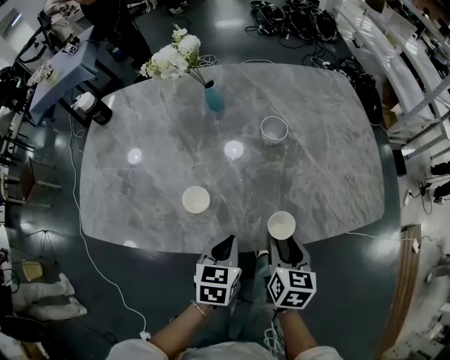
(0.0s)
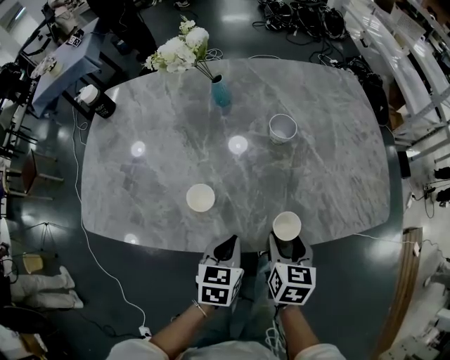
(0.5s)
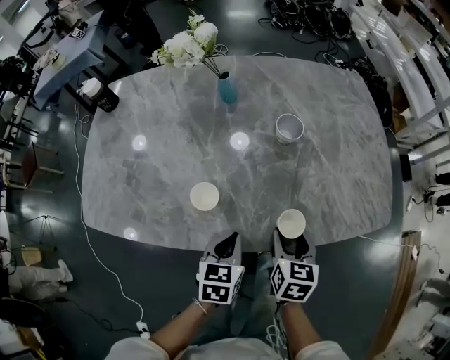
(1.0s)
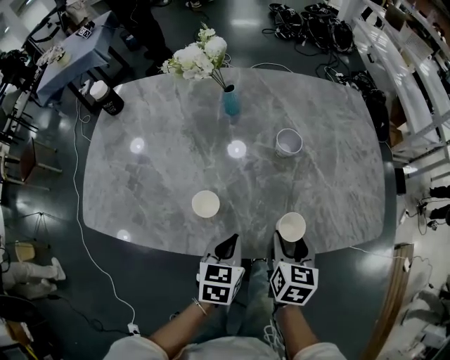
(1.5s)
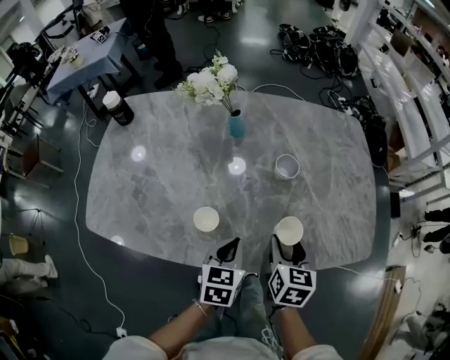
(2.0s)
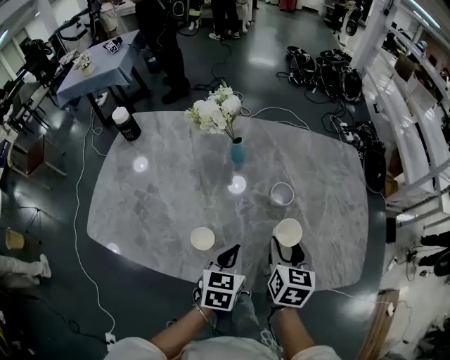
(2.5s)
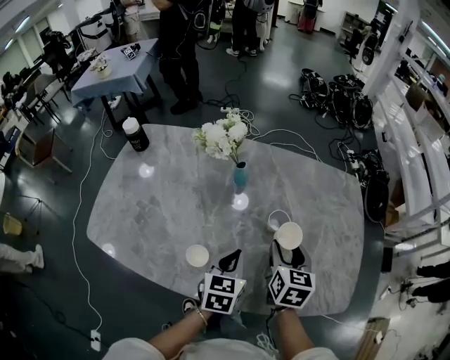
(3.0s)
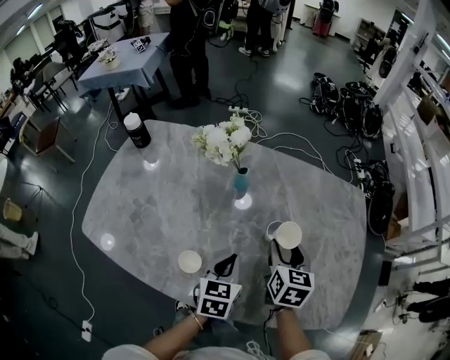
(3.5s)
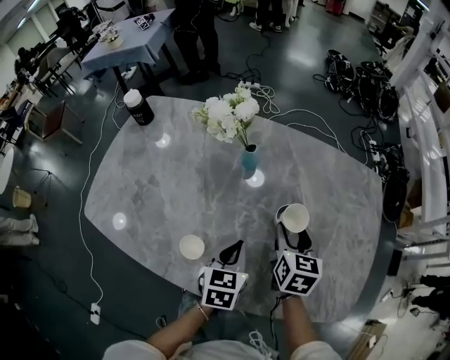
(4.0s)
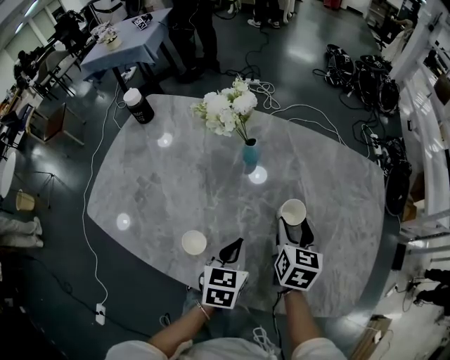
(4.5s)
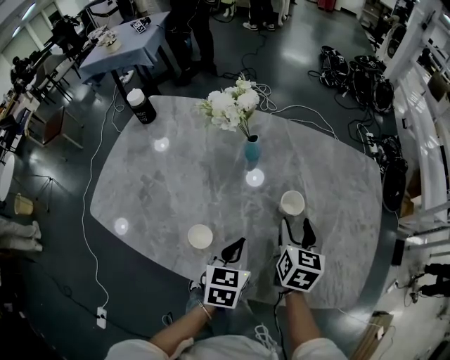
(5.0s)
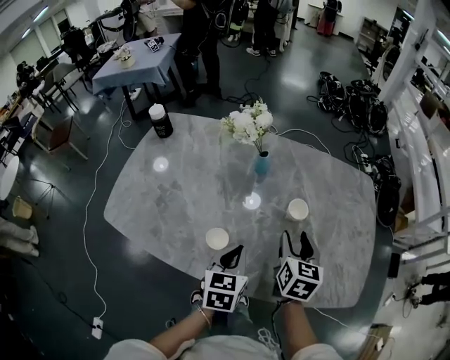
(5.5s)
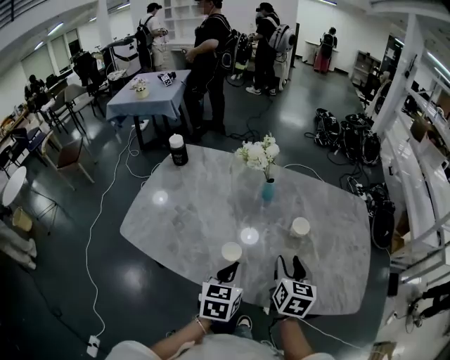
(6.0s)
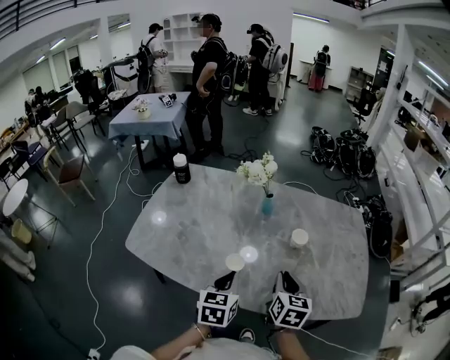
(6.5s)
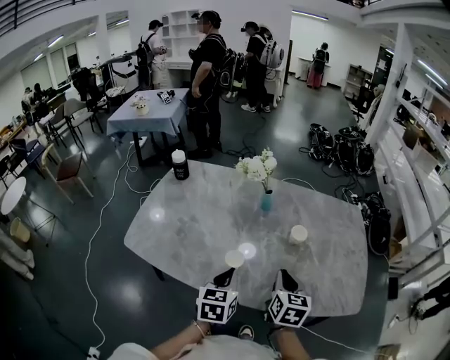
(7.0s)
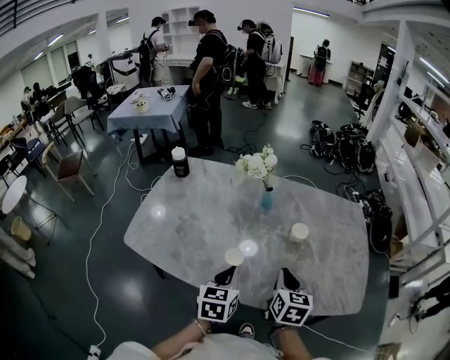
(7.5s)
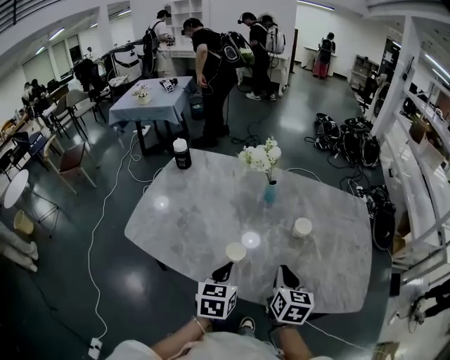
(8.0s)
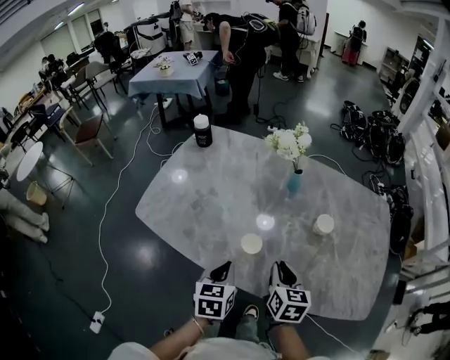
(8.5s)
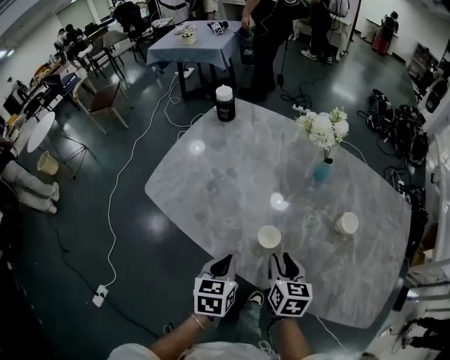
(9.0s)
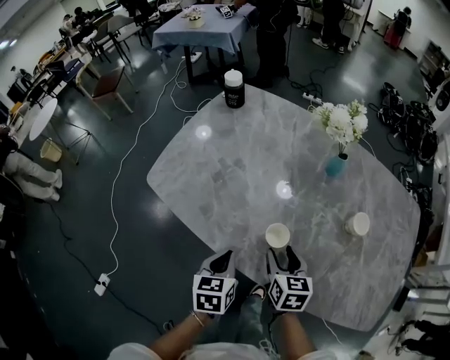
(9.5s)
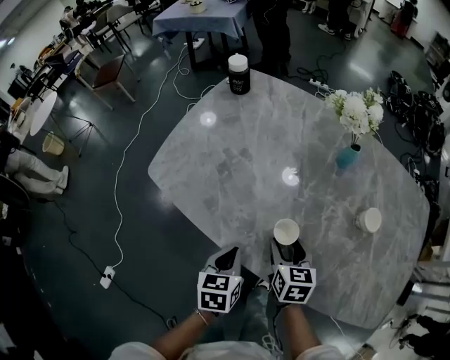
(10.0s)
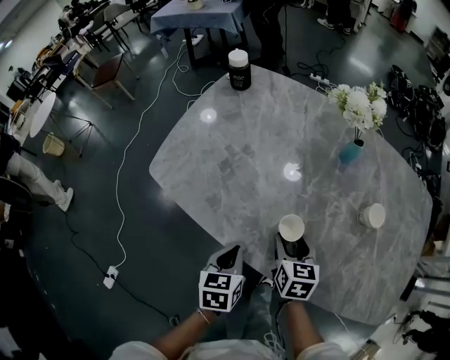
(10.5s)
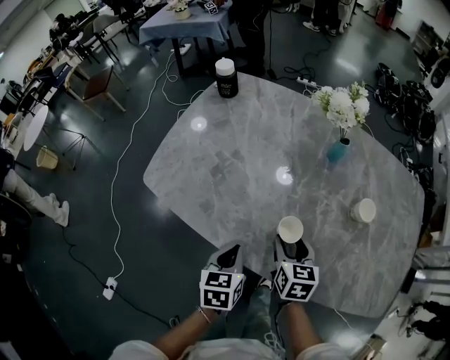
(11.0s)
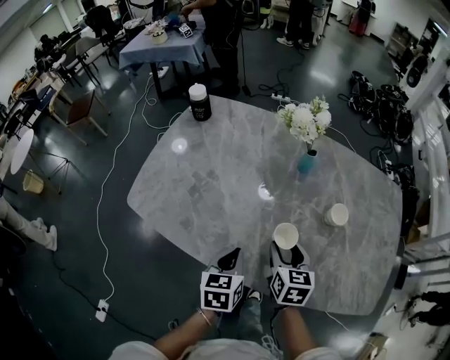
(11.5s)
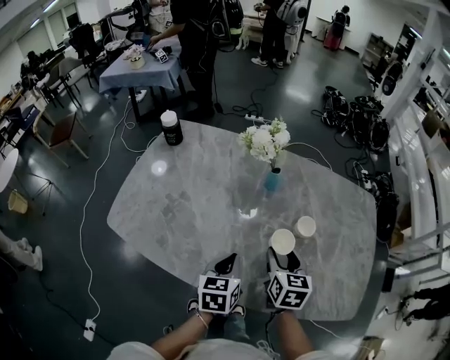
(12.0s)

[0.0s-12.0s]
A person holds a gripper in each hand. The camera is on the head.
0.0s to 2.0s: The right gripper is displaced forward and upward by roughly 10 cm. The left gripper is displaced forward by approximately 5 cm.
2.0s to 4.0s: The left gripper moves forward, approximately 10 cm, while the right gripper moves forward, roughly 20 cm.
4.0s to 6.0s: The left gripper moves backward, to the left and upward, about 20 cm. The right gripper shifts about 20 cm backward and upward.
6.0s to 8.0s: The right gripper closes up.
8.0s to 10.0s: The right gripper travels downward, to the left and forward by about 20 cm, rotates approximately 30 degrees, and opens its fingers. Meanwhile the left gripper shifts approximately 15 cm downward and to the left, and rotates about 20 degrees.
10.0s to 12.0s: The right gripper travels to the right and upward by roughly 20 cm; the left gripper heads to the right, upward and forward, covering approximately 20 cm.

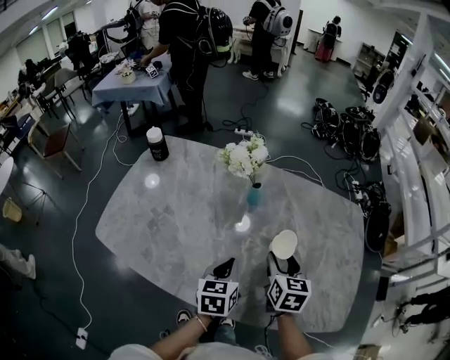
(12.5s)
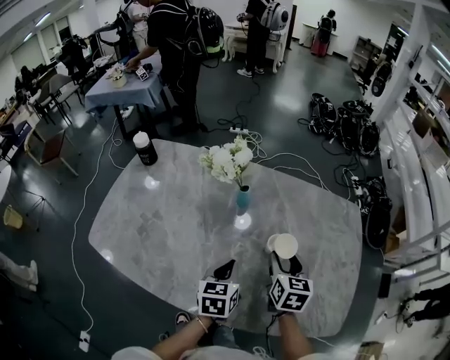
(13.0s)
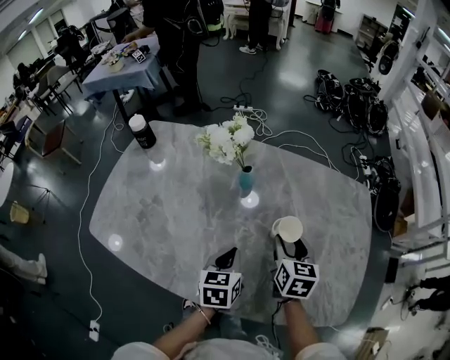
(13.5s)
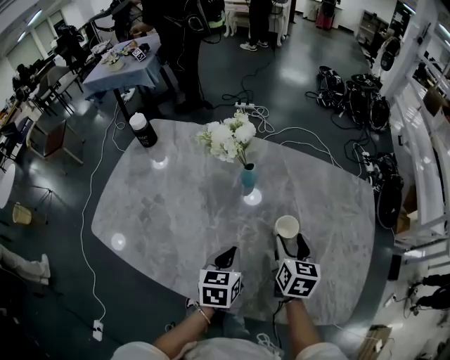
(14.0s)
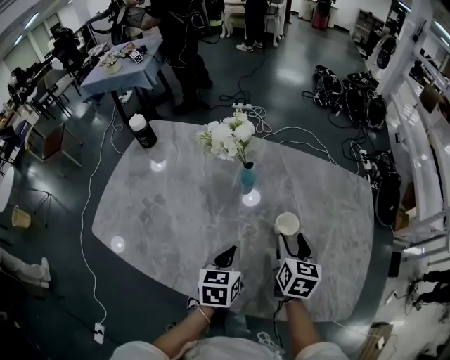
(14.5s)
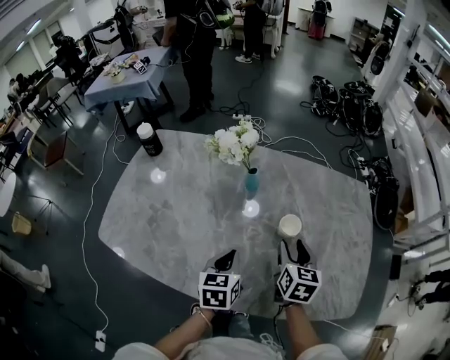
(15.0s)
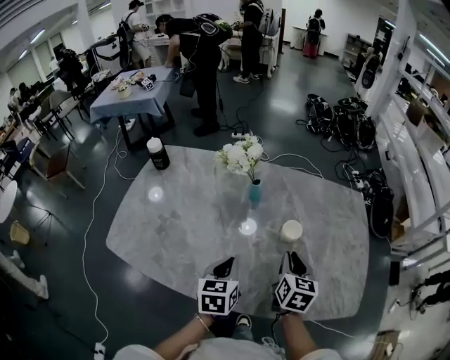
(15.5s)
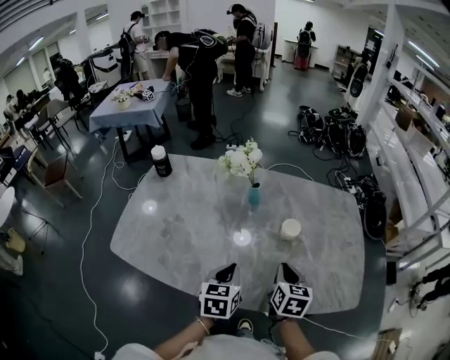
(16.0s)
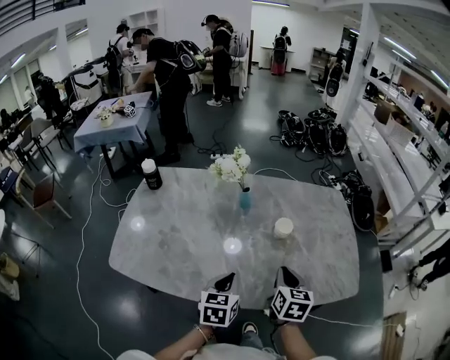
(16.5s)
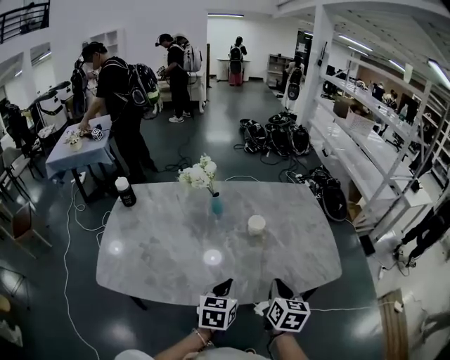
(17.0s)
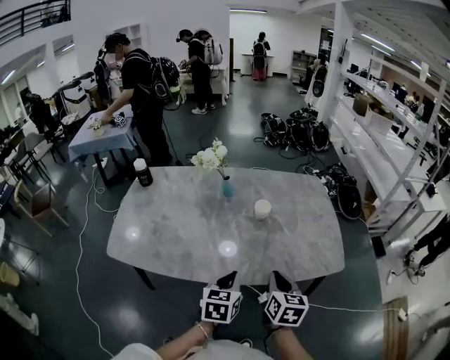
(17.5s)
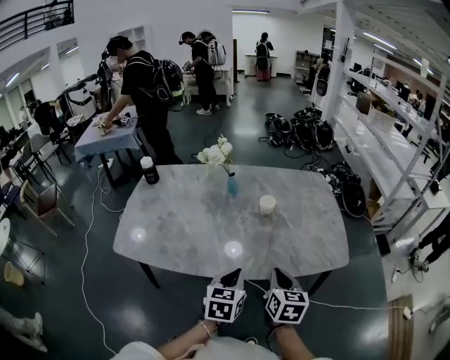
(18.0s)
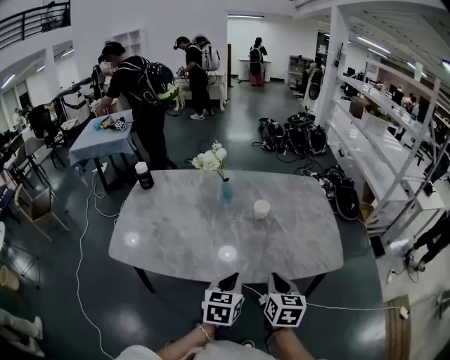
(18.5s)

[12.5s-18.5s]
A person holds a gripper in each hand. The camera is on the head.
12.5s to 14.5s: The right gripper moves some 5 cm.
14.5s to 16.5s: The left gripper moves backward and upward, approximately 15 cm. The right gripper travels backward by about 15 cm, and closes its fingers.
16.5s to 18.5s: The right gripper goes about 15 cm backward. Meanwhile the left gripper is displaced backward and to the right by roughly 15 cm.

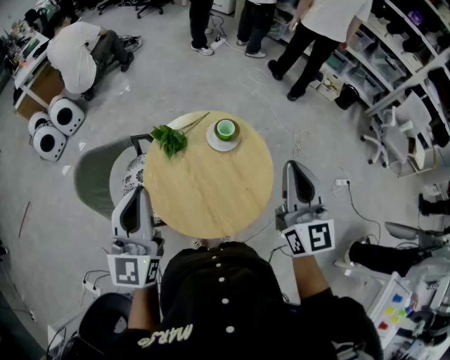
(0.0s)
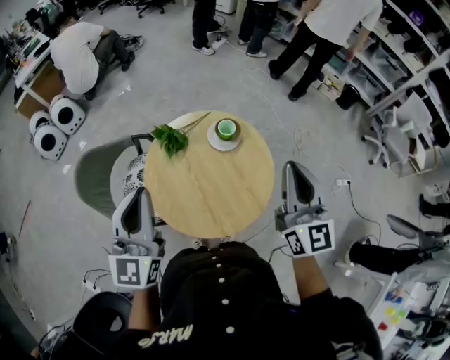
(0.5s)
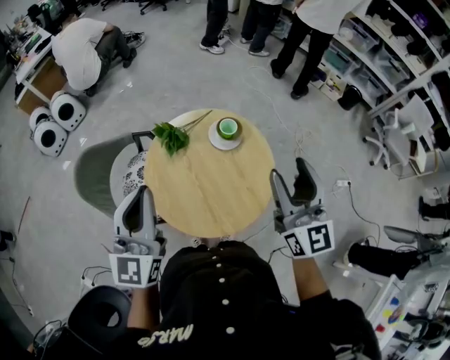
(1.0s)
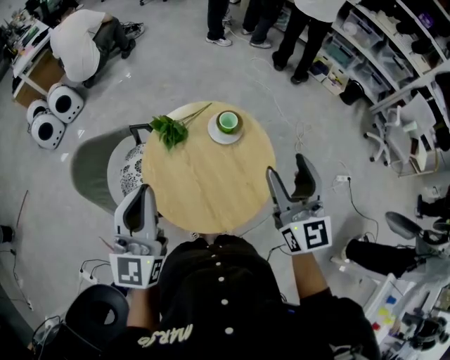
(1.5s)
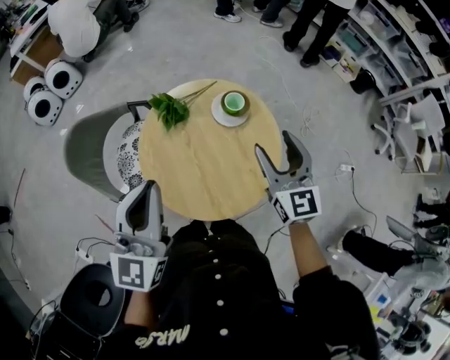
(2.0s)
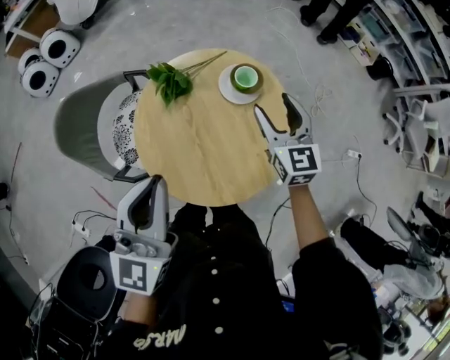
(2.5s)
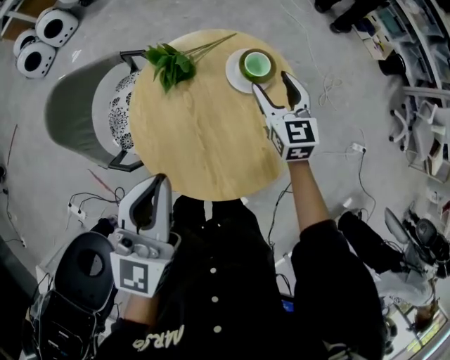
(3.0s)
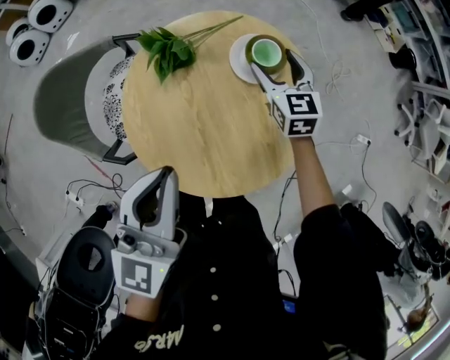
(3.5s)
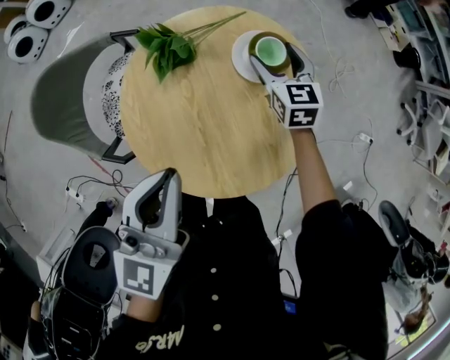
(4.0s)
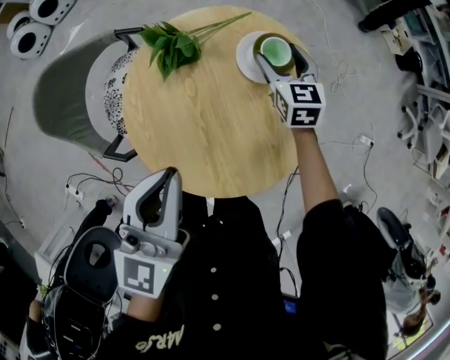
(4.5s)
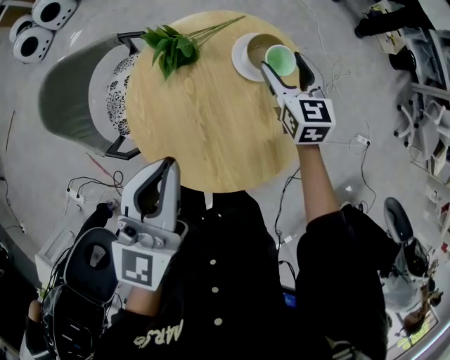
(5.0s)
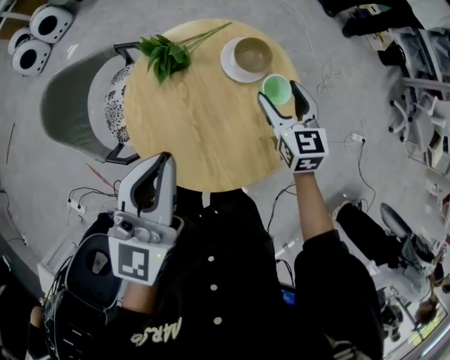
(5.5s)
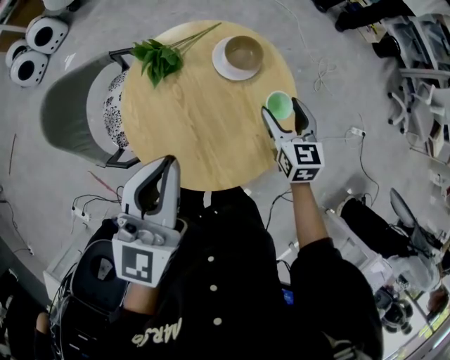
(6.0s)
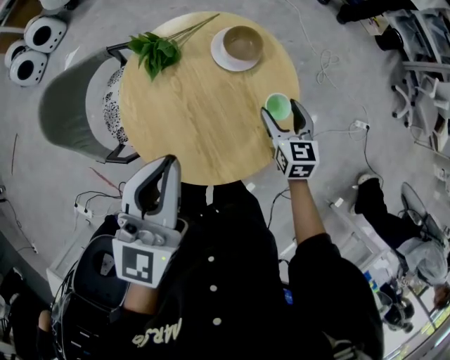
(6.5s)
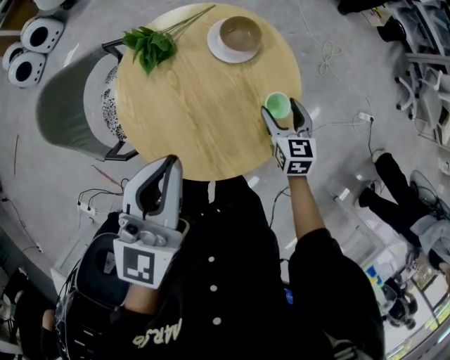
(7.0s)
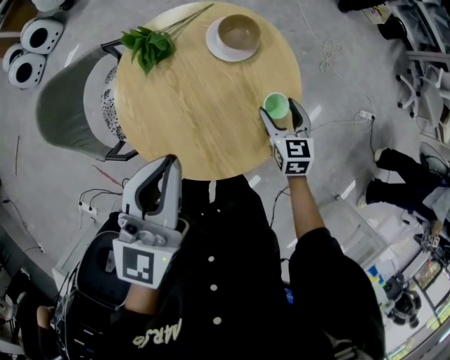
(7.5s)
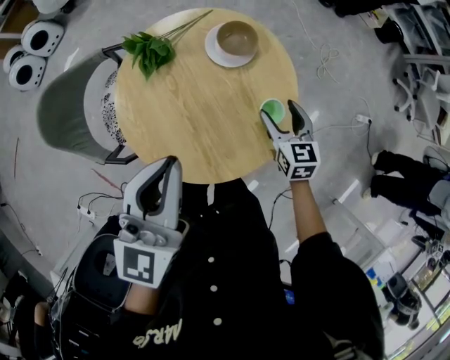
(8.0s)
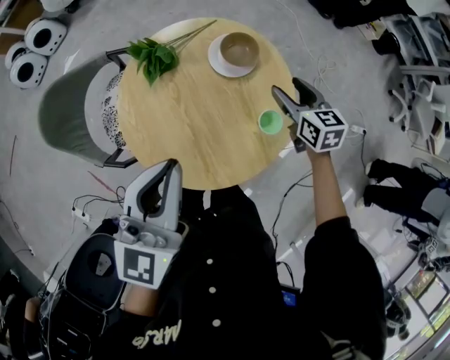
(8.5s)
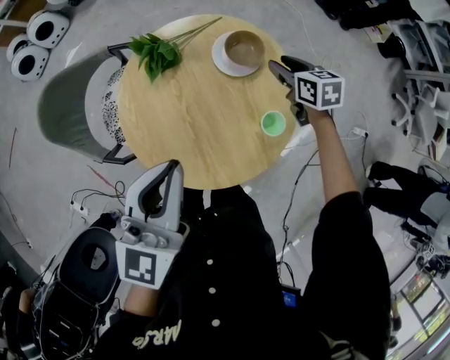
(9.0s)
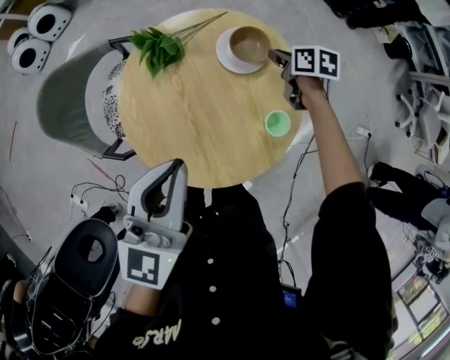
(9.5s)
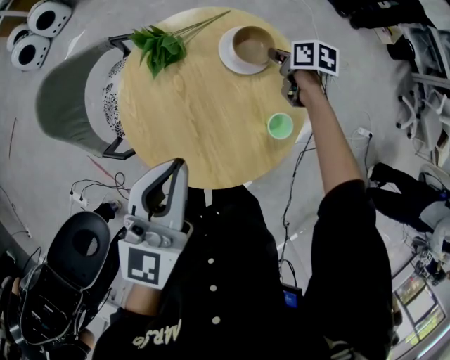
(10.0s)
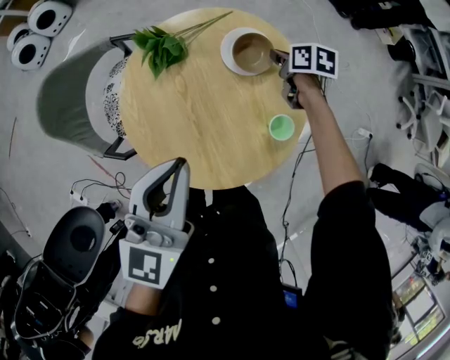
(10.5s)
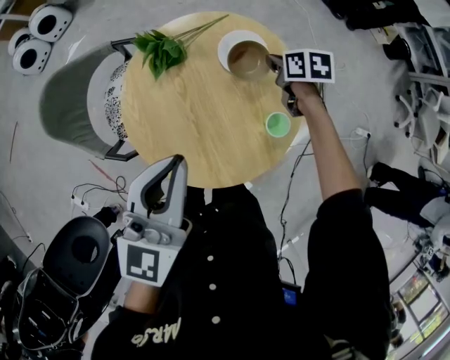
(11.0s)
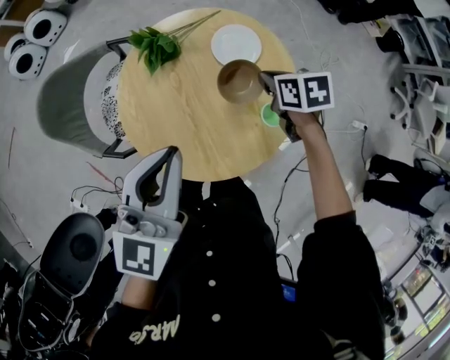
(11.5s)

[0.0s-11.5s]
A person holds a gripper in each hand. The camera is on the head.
0.0s to 2.0s: The right gripper is displaced downward and forward by roughly 15 cm, and opens up. The left gripper moves some 5 cm.
2.0s to 4.0s: The left gripper is displaced downward by about 15 cm; the right gripper goes roughly 35 cm downward and forward, and rotates about 20 degrees.
4.0s to 6.0s: The left gripper is displaced upward by approximately 5 cm. The right gripper moves backward, to the right and upward, about 20 cm.
6.0s to 7.5s: The right gripper shifts roughly 10 cm downward and backward.
7.5s to 9.5s: The right gripper goes roughly 20 cm forward, changes its angle by approximately 40 degrees, and closes.
9.5s to 11.5s: The right gripper travels backward, upward and to the left by approximately 15 cm.
